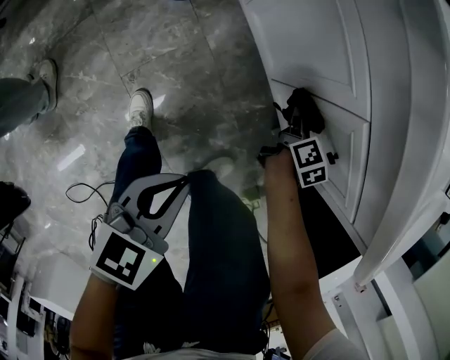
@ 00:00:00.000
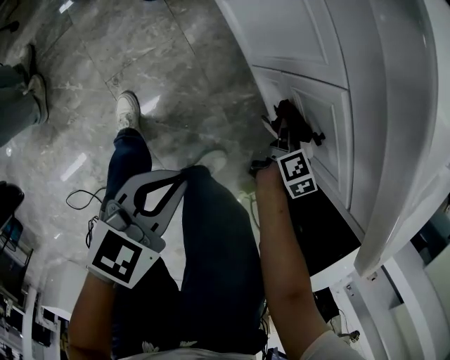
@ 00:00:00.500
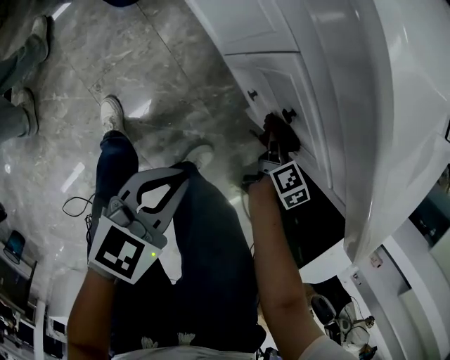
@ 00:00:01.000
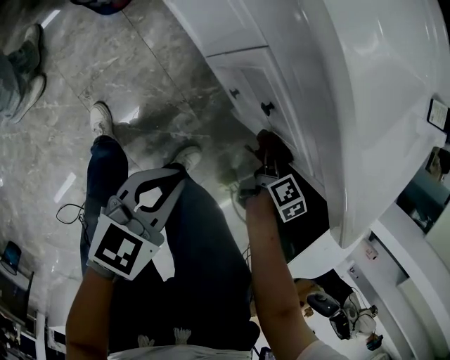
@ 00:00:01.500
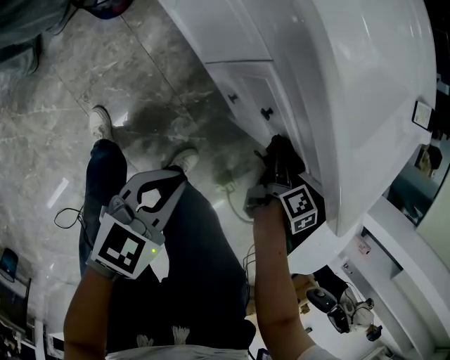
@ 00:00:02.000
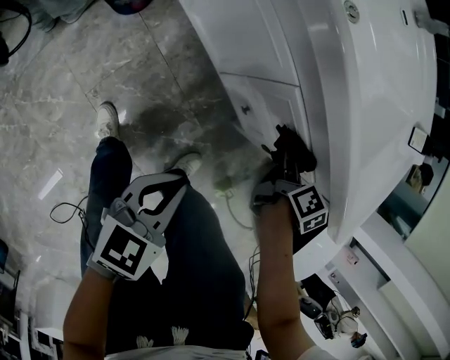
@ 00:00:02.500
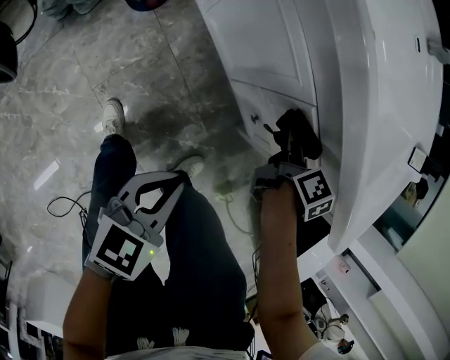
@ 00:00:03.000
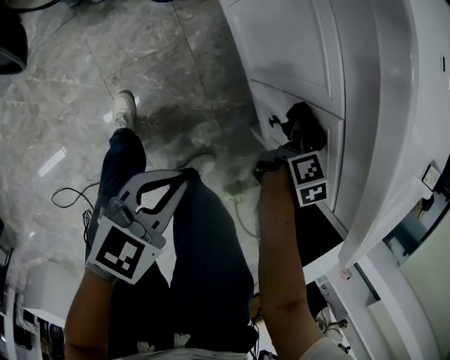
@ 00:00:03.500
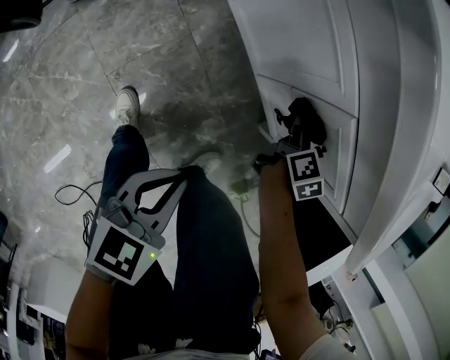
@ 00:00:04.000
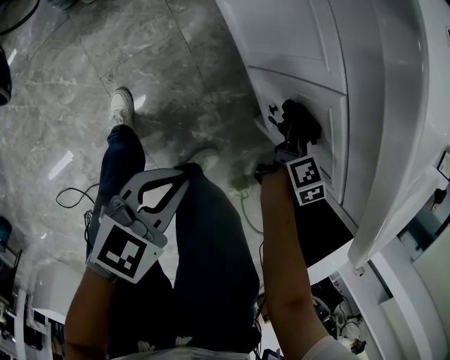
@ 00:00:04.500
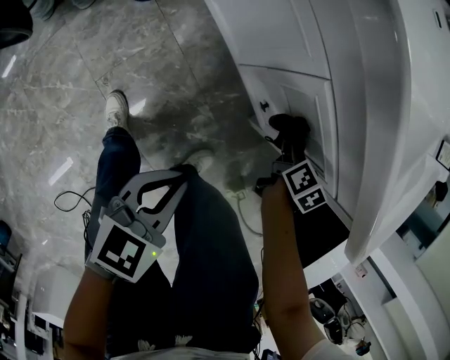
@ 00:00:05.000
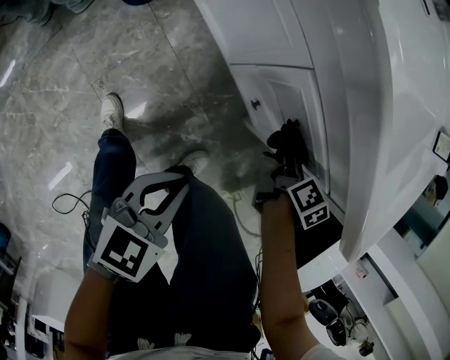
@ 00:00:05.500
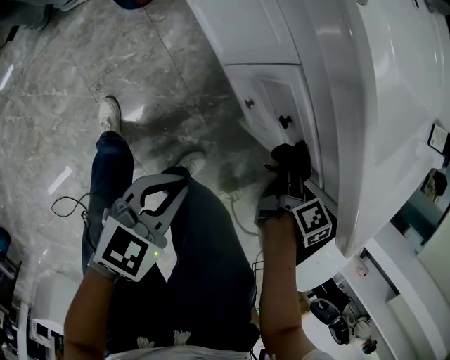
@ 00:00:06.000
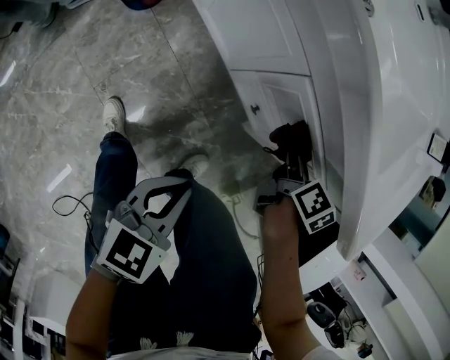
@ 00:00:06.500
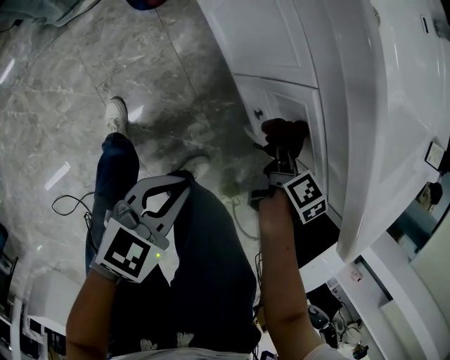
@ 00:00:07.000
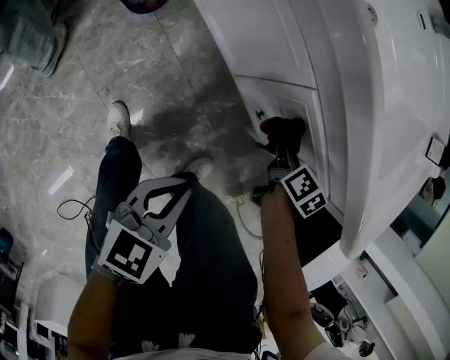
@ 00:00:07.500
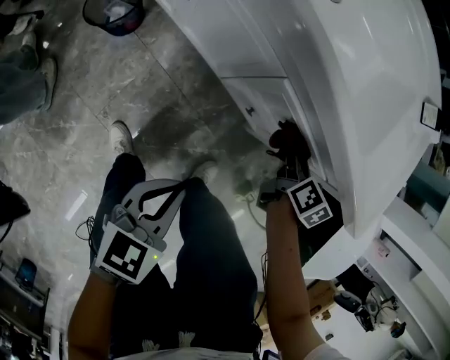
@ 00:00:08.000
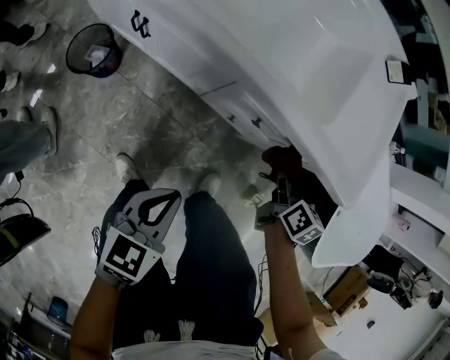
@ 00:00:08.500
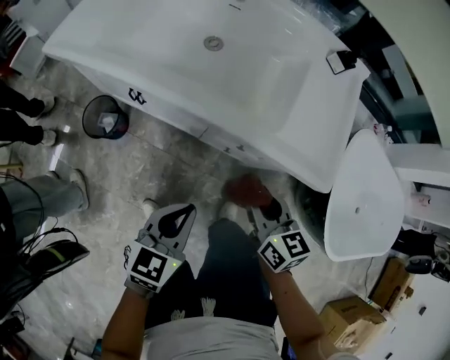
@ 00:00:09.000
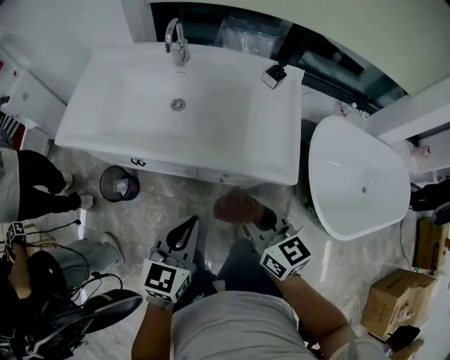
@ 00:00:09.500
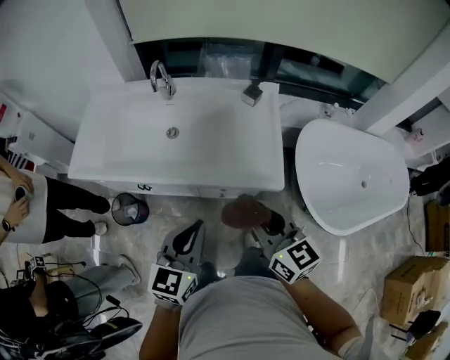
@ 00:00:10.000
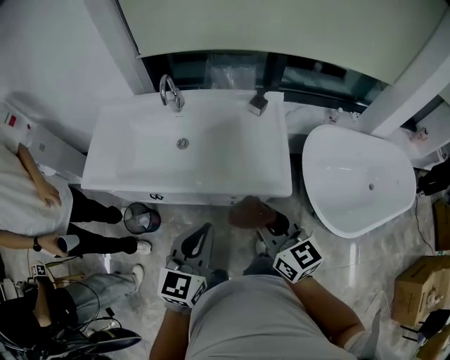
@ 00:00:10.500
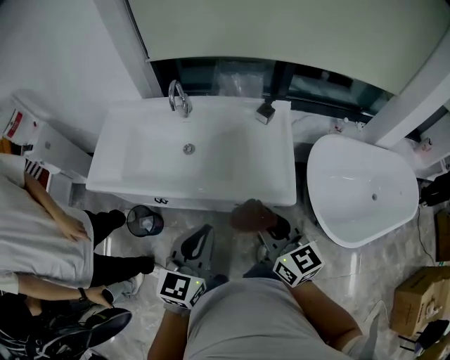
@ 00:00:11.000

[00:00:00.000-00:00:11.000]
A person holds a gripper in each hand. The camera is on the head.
00:00:00.000 to 00:00:02.000: The left gripper travels to the right, forward and upward by roughly 15 cm. The right gripper travels to the right and upward by roughly 25 cm.
00:00:02.000 to 00:00:03.500: The right gripper shifts roughly 20 cm to the left; the left gripper travels to the left by roughly 10 cm.
00:00:03.500 to 00:00:05.500: Both grippers move to the right, some 10 cm.
00:00:05.500 to 00:00:07.500: The right gripper goes approximately 5 cm to the left.
00:00:07.500 to 00:00:09.000: The right gripper goes some 25 cm upward, and swivels some 30 degrees, while the left gripper heads upward, covering some 15 cm, and changes its angle by approximately 20 degrees.
00:00:09.000 to 00:00:11.000: Both grippers travel together upward, roughly 30 cm. The left gripper swivels approximately 20 degrees, while the right gripper turns by some 20 degrees.

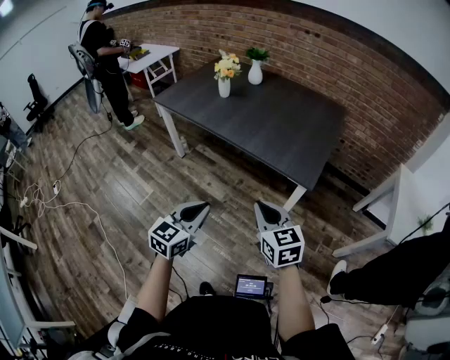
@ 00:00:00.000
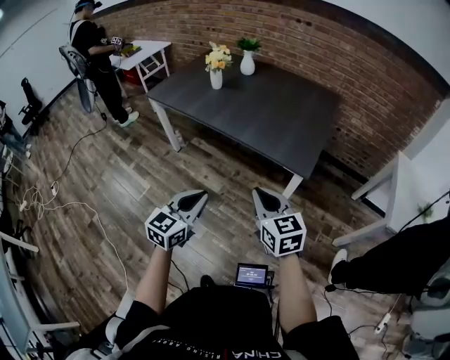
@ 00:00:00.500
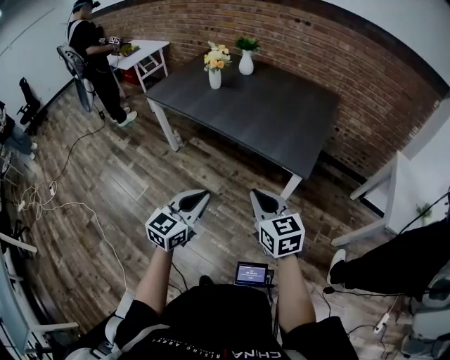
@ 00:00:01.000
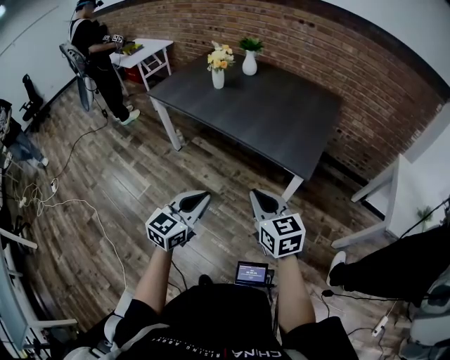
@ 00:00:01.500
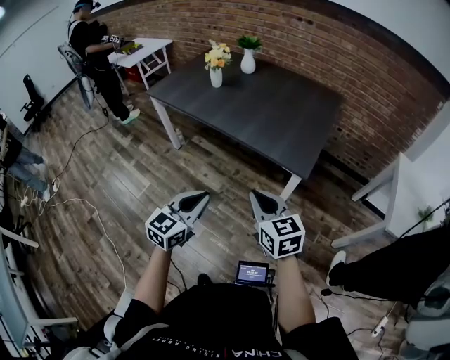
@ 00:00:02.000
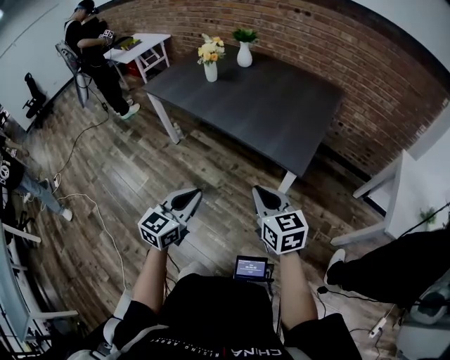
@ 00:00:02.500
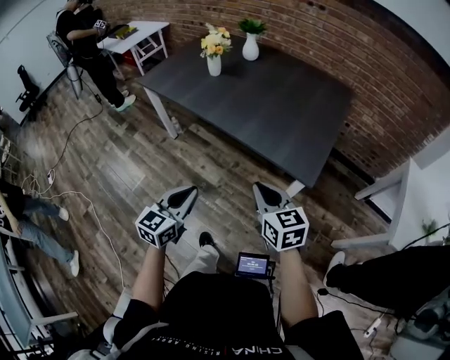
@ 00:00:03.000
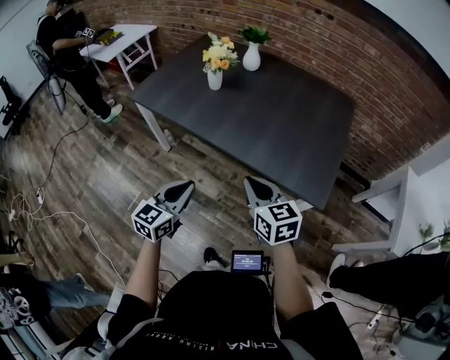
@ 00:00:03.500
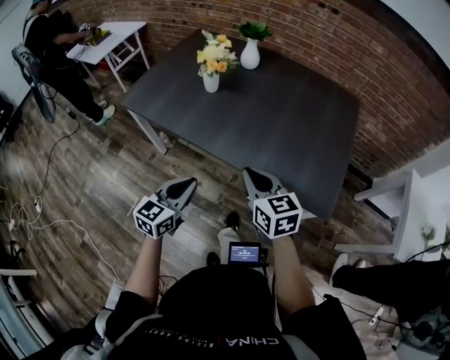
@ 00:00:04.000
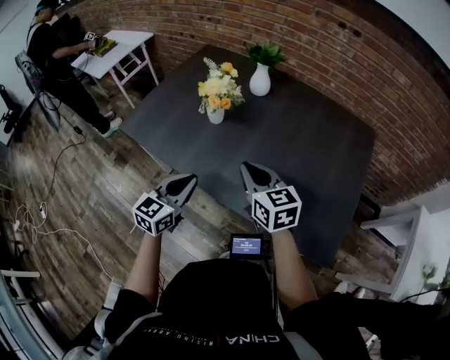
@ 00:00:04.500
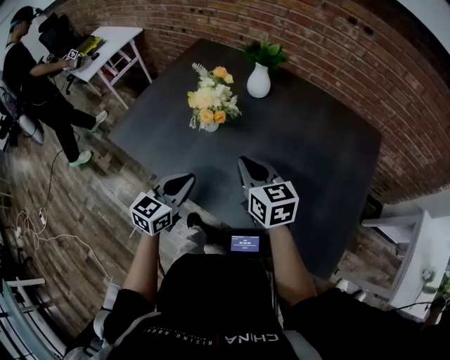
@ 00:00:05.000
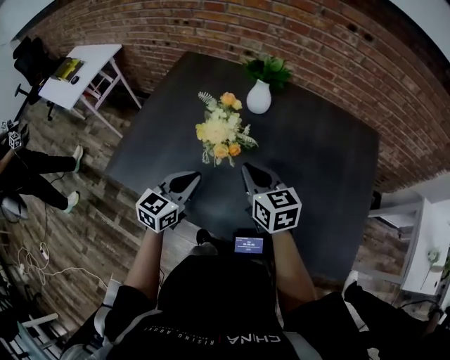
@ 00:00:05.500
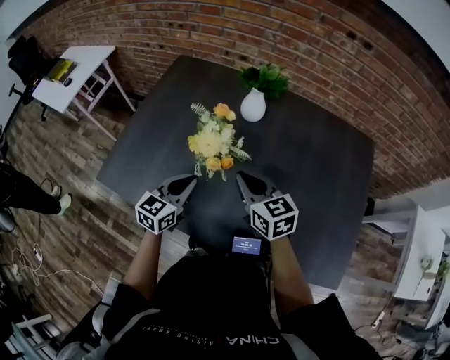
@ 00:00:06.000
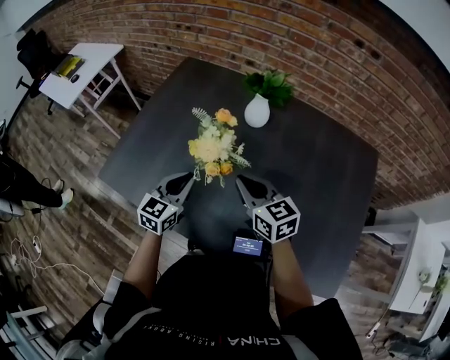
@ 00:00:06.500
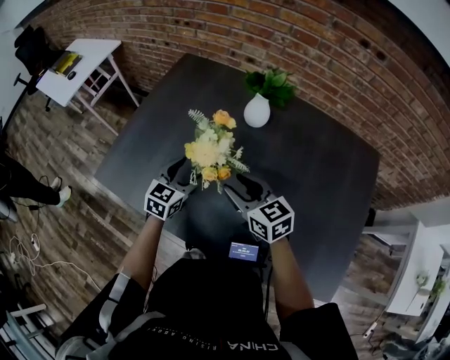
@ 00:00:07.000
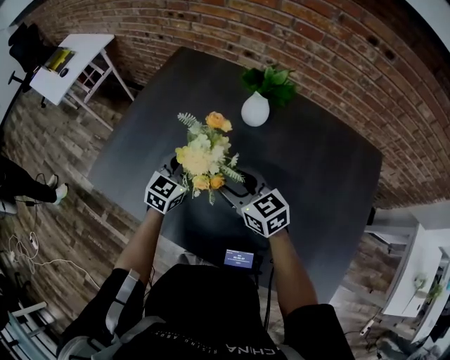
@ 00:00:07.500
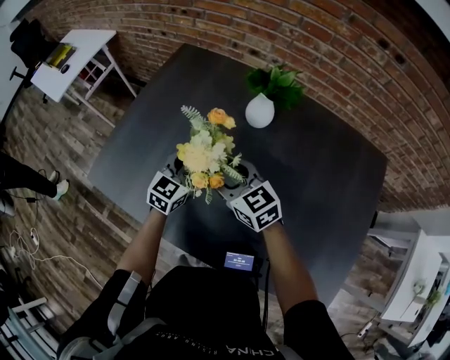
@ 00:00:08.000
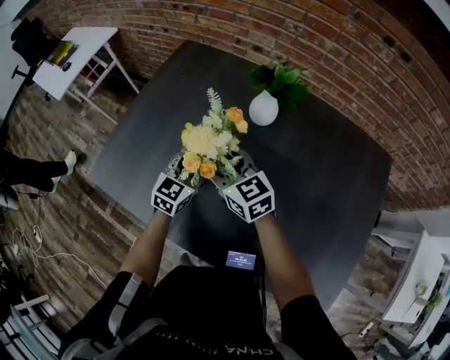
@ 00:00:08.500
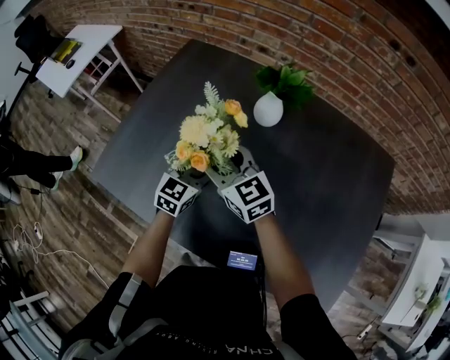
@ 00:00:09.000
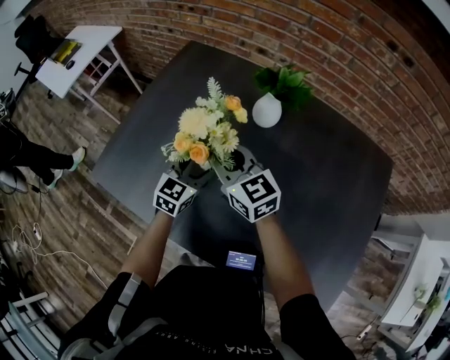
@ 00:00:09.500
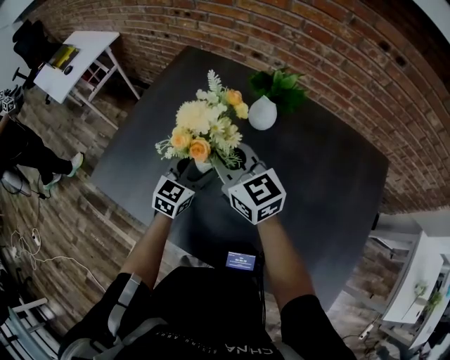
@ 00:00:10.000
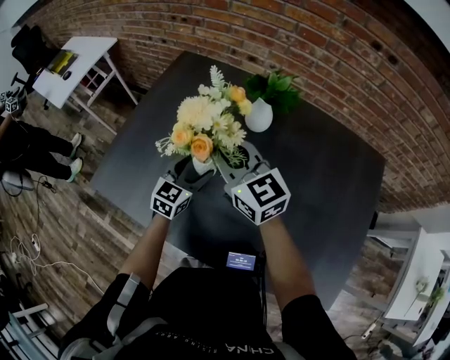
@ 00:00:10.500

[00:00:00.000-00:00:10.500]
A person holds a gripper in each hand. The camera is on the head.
00:00:00.000 to 00:00:02.000: The grippers stay close to where they were, moving slightly.
00:00:02.000 to 00:00:04.000: The right gripper heads forward, covering about 35 cm. The left gripper travels forward and to the left by some 35 cm.
00:00:04.000 to 00:00:06.500: The grippers both shift forward by some 40 cm.
00:00:06.500 to 00:00:08.500: The right gripper travels forward and to the left by approximately 15 cm, and opens. Meanwhile the left gripper shifts some 10 cm forward and to the right, and opens up.
00:00:08.500 to 00:00:10.500: The right gripper travels upward by approximately 10 cm, and closes its fingers.

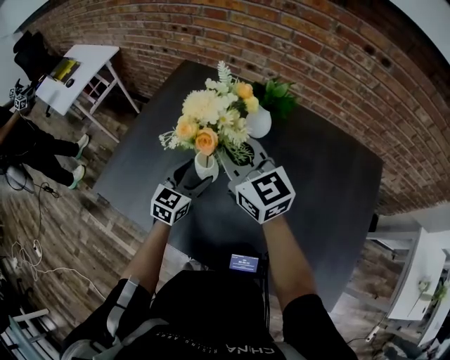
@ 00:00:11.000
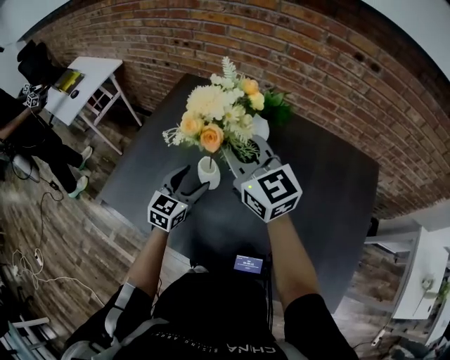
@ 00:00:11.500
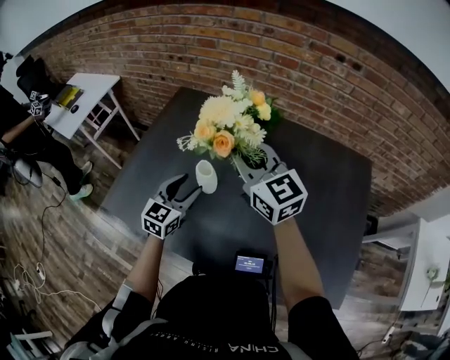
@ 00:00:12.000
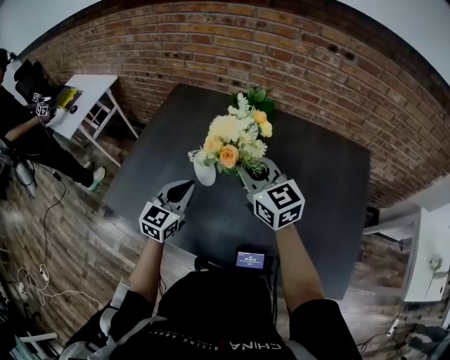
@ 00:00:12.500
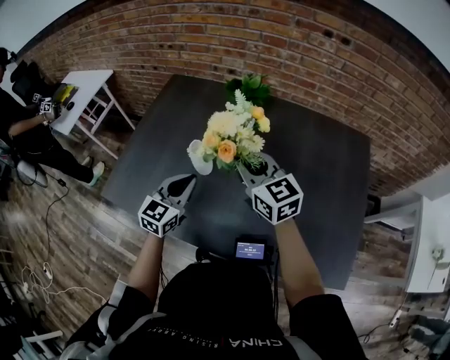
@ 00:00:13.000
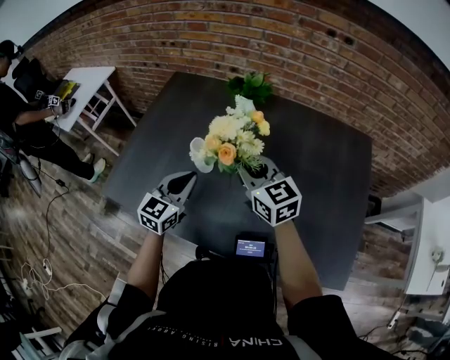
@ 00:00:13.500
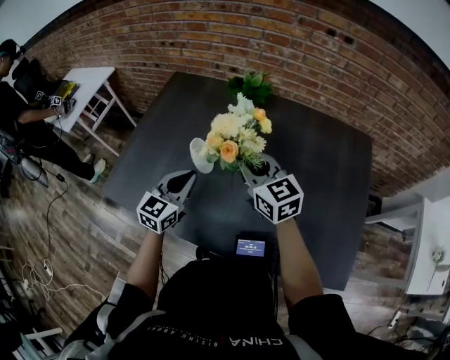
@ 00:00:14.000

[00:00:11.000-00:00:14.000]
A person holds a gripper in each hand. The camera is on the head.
00:00:11.000 to 00:00:12.500: The left gripper moves upward and backward, roughly 10 cm, and closes its fingers, while the right gripper shifts some 10 cm backward and to the right.
00:00:12.500 to 00:00:14.000: There are only small adjustments of the grippers.

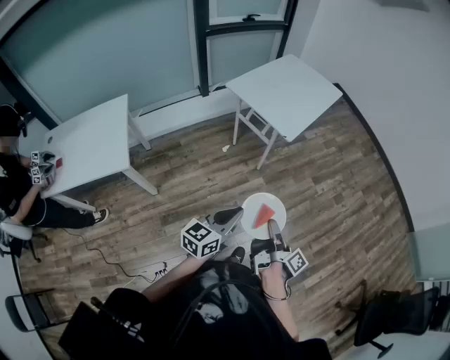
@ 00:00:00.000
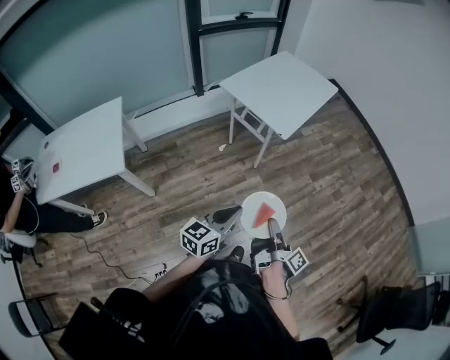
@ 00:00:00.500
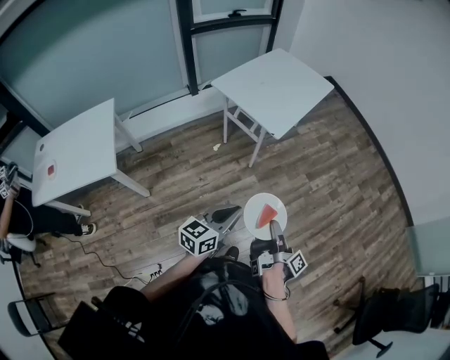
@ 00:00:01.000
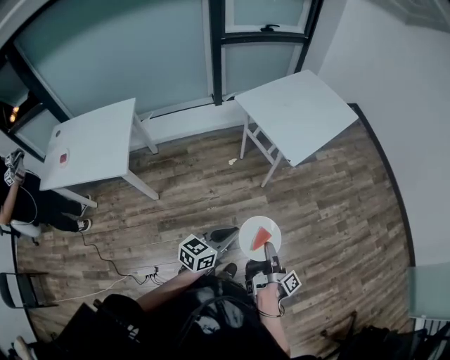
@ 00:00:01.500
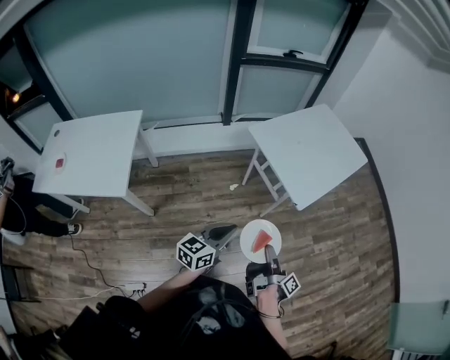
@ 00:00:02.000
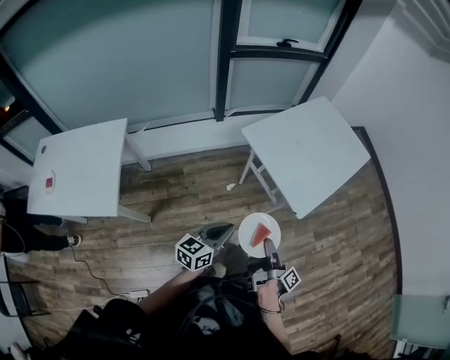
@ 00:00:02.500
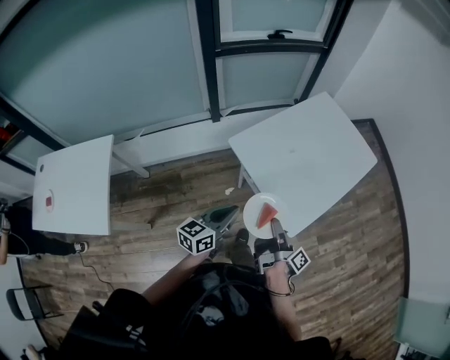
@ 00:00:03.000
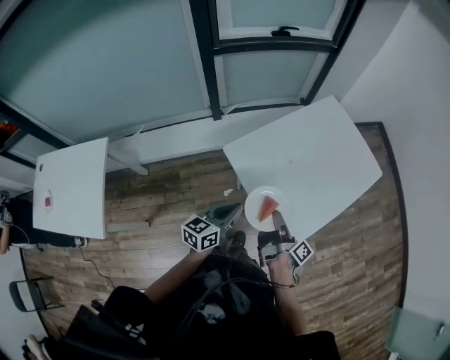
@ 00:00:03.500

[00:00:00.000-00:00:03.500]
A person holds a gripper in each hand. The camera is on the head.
00:00:00.000 to 00:00:02.000: The left gripper moves roughly 25 cm.
00:00:02.000 to 00:00:03.500: The left gripper moves approximately 40 cm.
